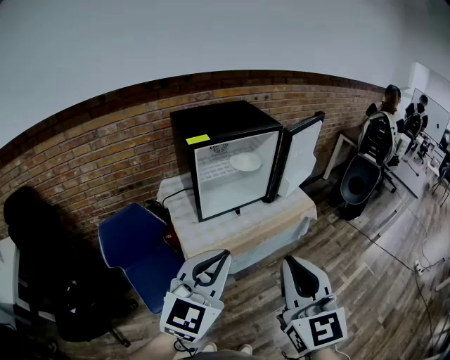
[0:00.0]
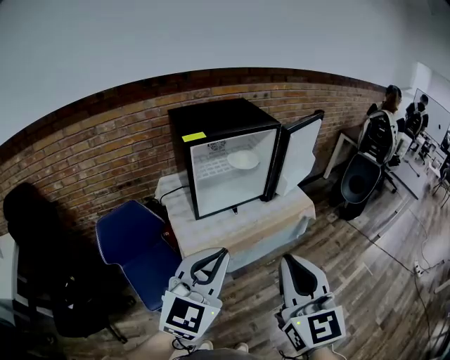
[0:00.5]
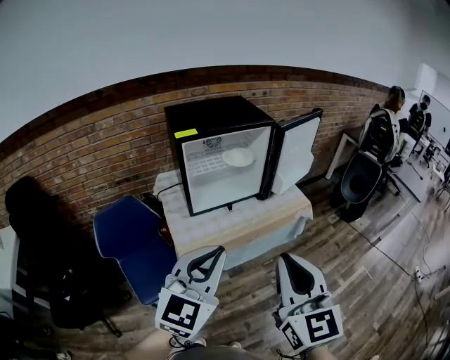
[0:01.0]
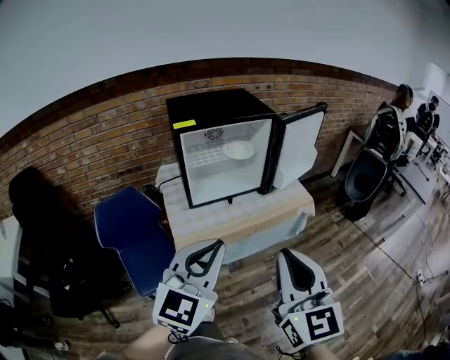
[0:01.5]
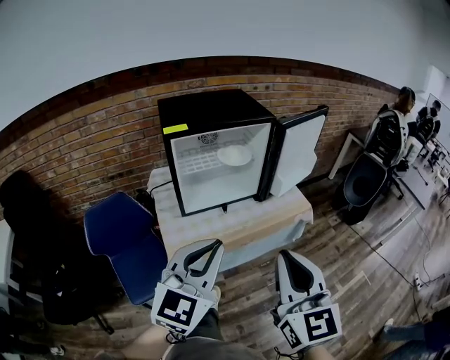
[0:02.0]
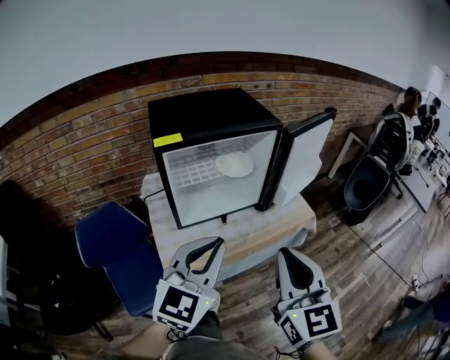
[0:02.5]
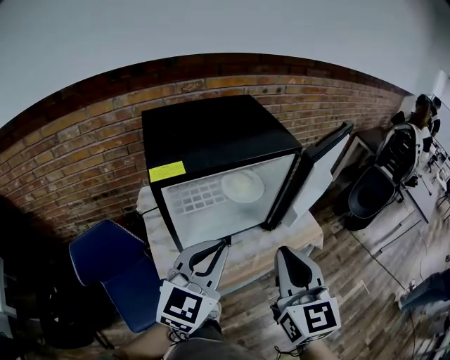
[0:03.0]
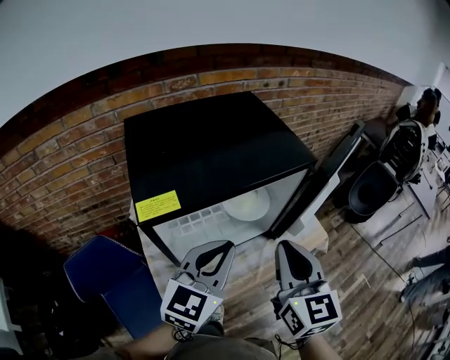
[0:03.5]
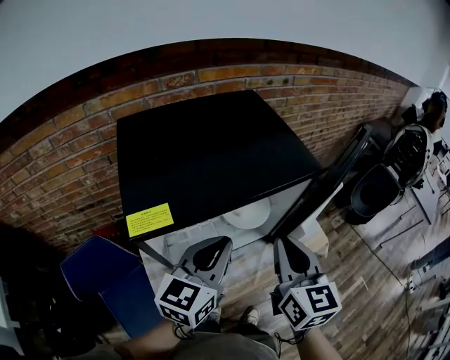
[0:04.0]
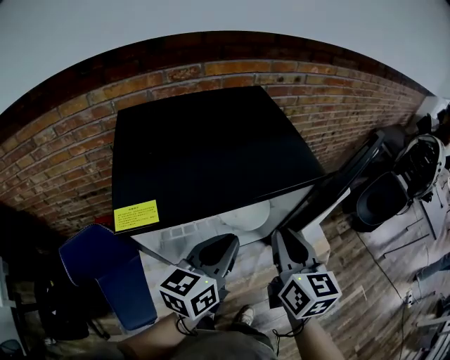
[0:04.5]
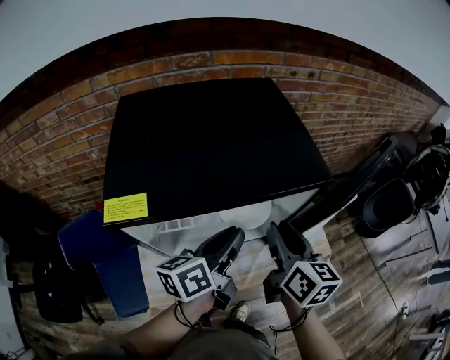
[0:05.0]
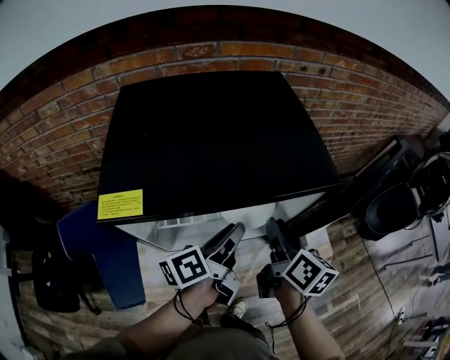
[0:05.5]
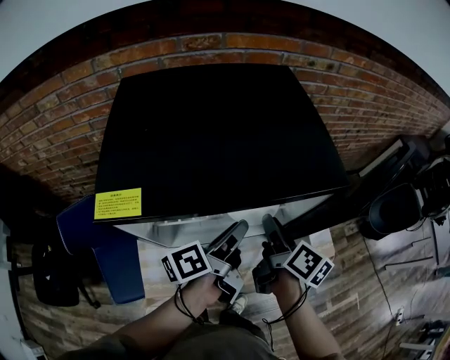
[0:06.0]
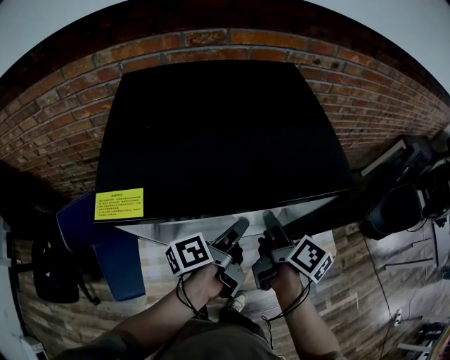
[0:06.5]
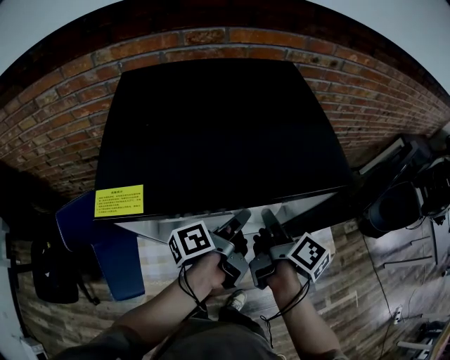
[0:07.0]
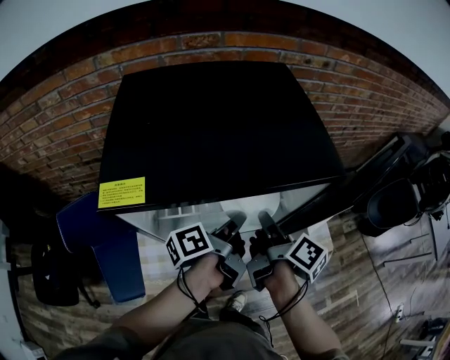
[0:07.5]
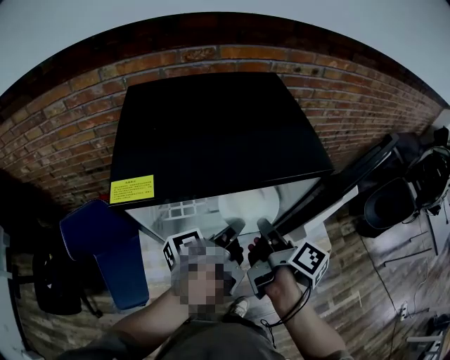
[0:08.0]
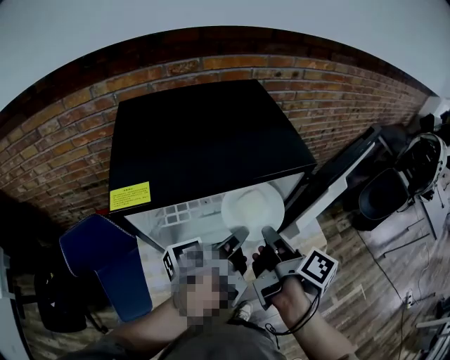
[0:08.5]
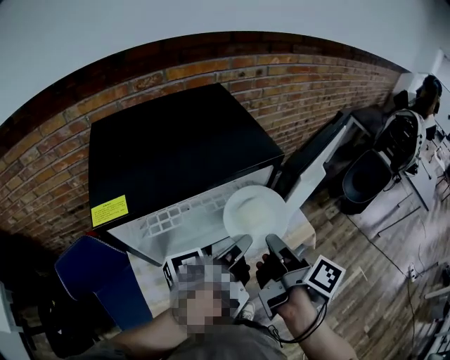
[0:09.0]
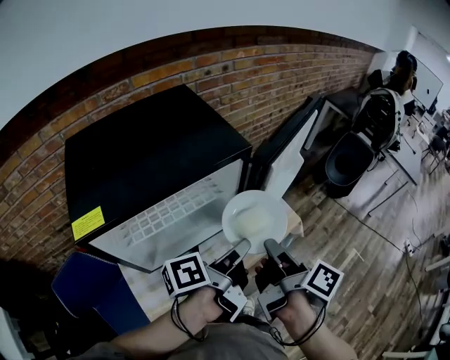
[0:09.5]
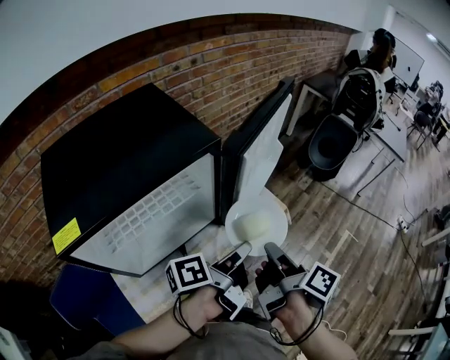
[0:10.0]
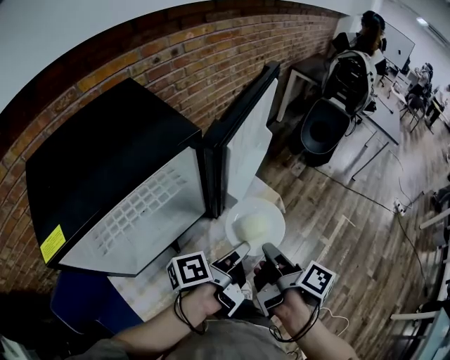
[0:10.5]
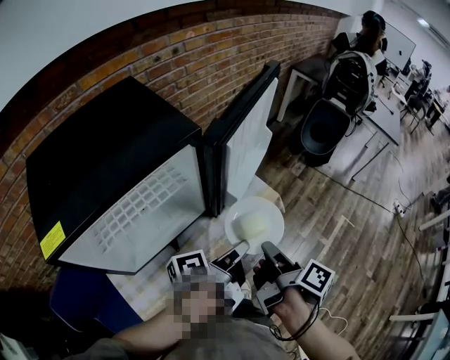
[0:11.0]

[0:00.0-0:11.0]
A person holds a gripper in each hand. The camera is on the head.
0:00.0 to 0:02.0: The two grippers go approximately 10 cm to the right and forward.
0:02.0 to 0:03.5: Both grippers travel together forward, approximately 30 cm.
0:03.5 to 0:05.5: Both grippers move forward and downward, roughly 15 cm. The right gripper swivels approximately 40 degrees, and opens up. Meanwhile the left gripper rotates around the line of its fingers by some 70 degrees, counterclockwise from behind, and opens up.
0:05.5 to 0:07.5: The left gripper closes its fingers, while the right gripper turns by roughly 30 degrees, and closes its fingers.
0:07.5 to 0:09.0: The right gripper travels backward, to the right and upward by about 15 cm, while the left gripper travels upward, to the right and backward by approximately 15 cm.
0:09.0 to 0:11.0: Both grippers move to the right and downward, about 15 cm. The right gripper rotates roughly 20 degrees. The left gripper turns by about 20 degrees.

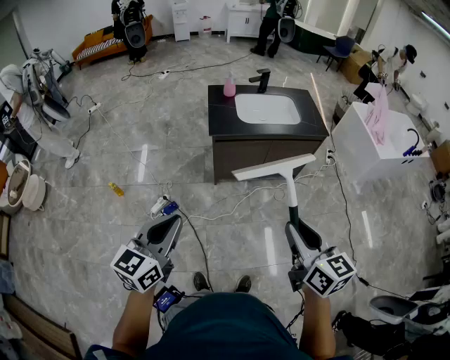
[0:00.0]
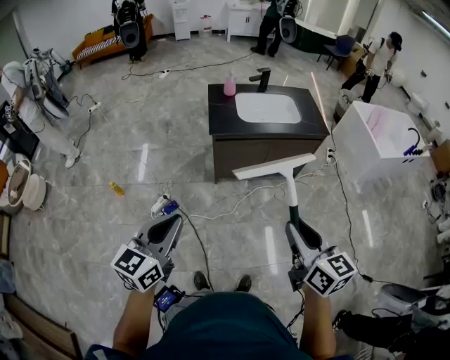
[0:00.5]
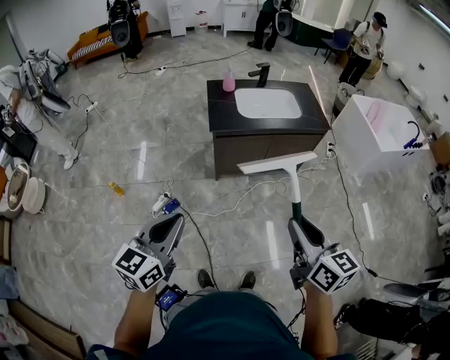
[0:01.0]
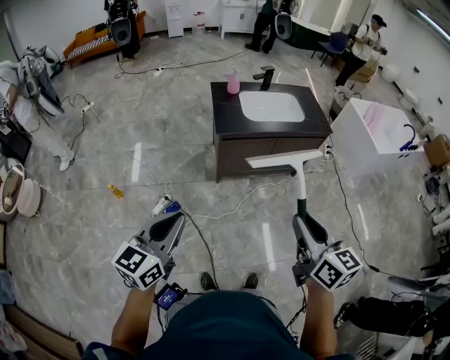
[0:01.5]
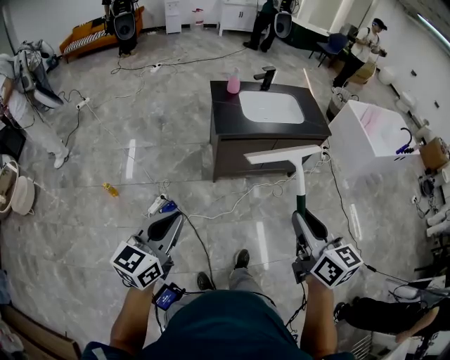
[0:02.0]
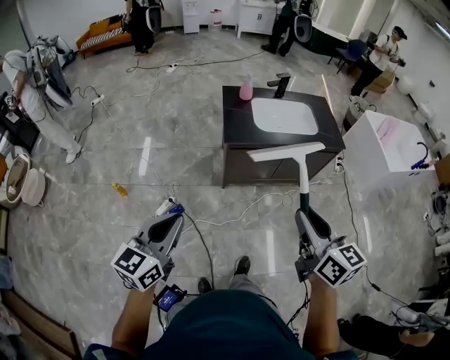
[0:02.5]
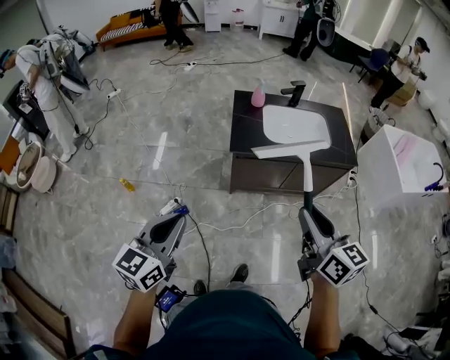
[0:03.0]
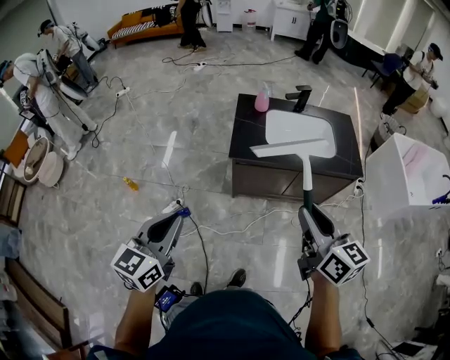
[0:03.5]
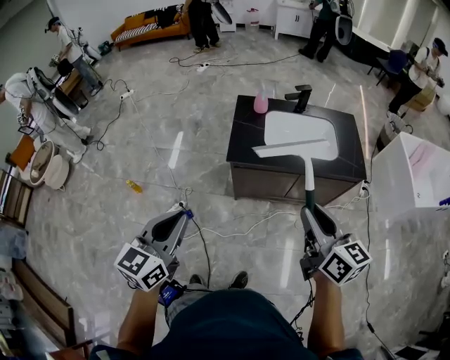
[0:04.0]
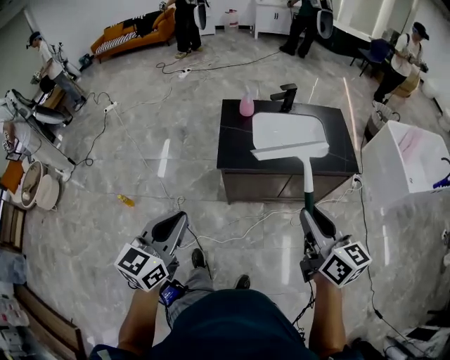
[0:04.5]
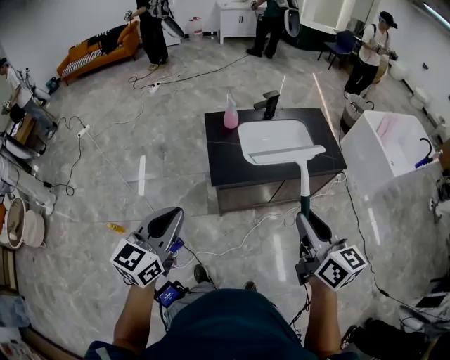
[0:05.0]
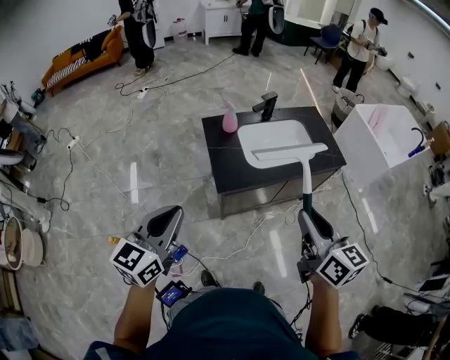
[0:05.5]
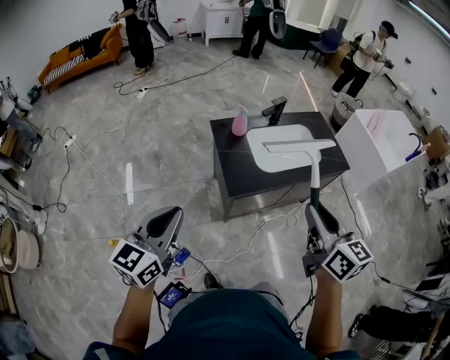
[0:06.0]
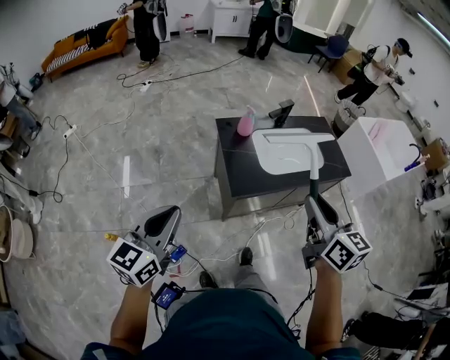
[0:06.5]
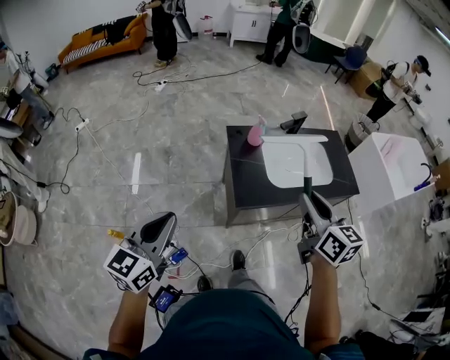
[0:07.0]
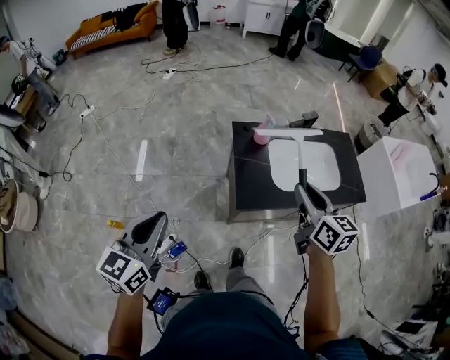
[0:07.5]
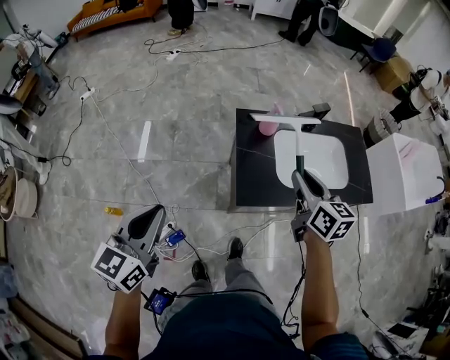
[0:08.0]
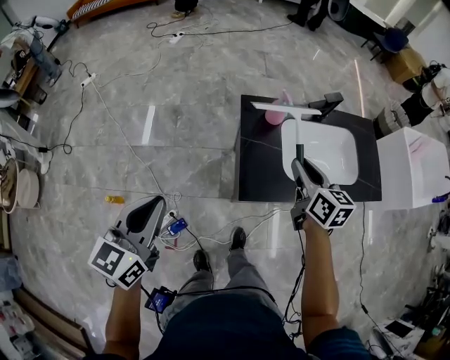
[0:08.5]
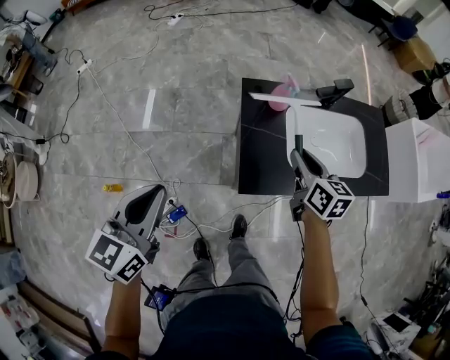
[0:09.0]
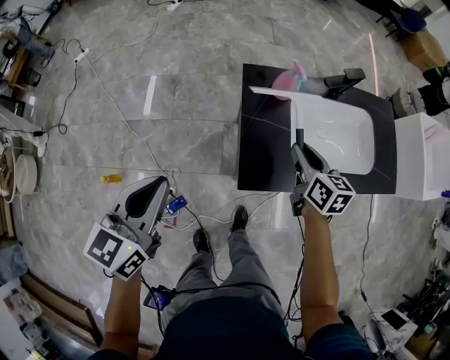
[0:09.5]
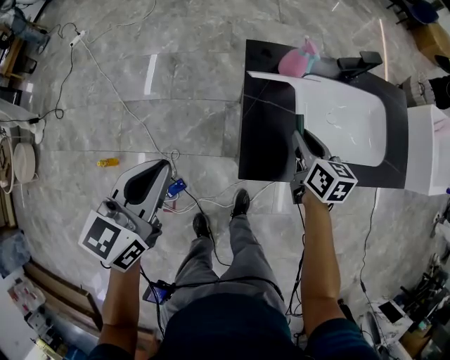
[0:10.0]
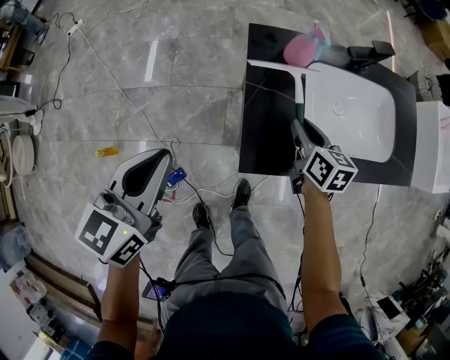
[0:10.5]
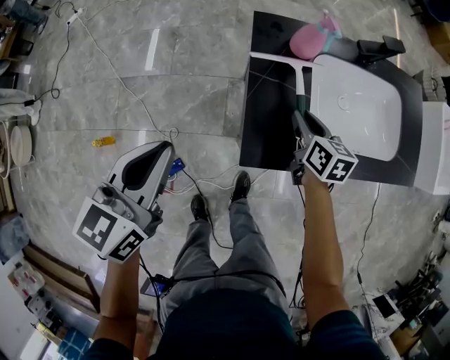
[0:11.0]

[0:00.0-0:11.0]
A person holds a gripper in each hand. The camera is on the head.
0:00.0 to 0:02.0: The grippers both shift to the left by about 10 cm.
0:02.0 to 0:03.5: The left gripper shifts some 15 cm forward and to the right, while the right gripper shifts some 25 cm forward and to the right.
0:03.5 to 0:05.5: The right gripper shifts approximately 10 cm forward and to the left, and changes its angle by roughly 20 degrees. Meanwhile the left gripper goes some 20 cm forward, and swivels about 20 degrees.
0:05.5 to 0:07.5: The left gripper goes about 10 cm to the left; the right gripper heads forward and to the left, covering approximately 20 cm.
0:07.5 to 0:09.0: The left gripper goes roughly 10 cm forward and downward; the right gripper moves downward and forward, approximately 20 cm.
0:09.0 to 0:11.0: The left gripper shifts about 10 cm downward and forward; the right gripper moves downward, approximately 20 cm.

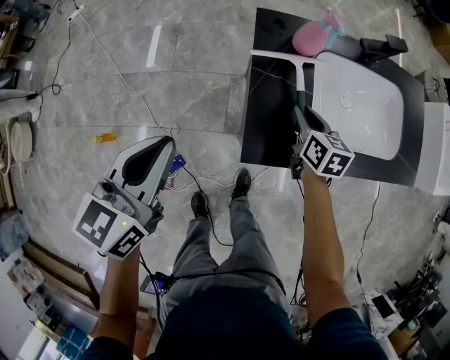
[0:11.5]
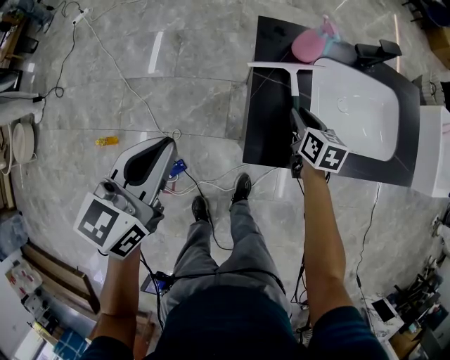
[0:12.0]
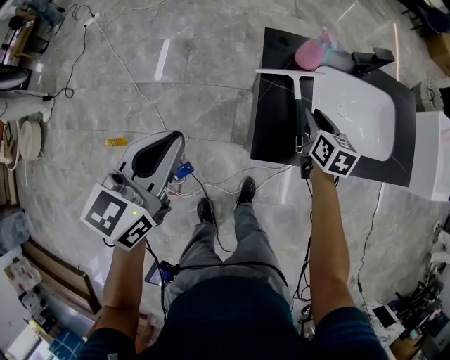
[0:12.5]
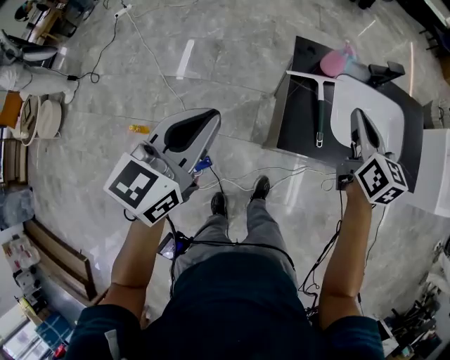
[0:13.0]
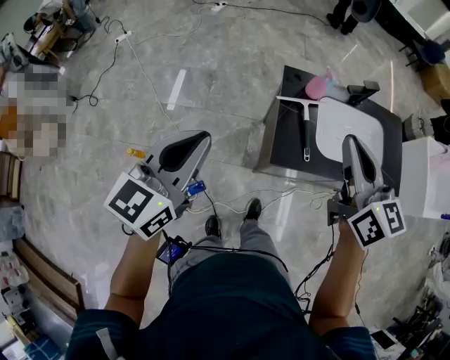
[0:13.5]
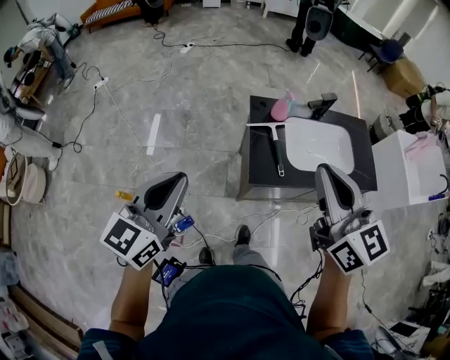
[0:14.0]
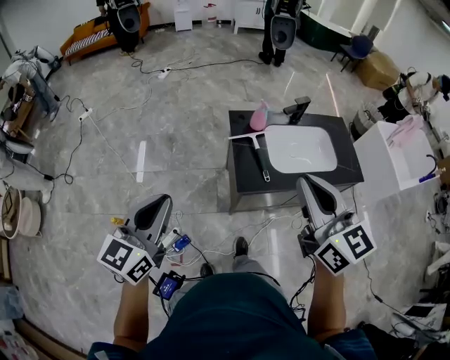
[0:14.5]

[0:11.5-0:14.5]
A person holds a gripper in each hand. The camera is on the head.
0:11.5 to 0:13.0: The left gripper heads upward, covering roughly 15 cm; the right gripper shifts approximately 25 cm upward, swivels roughly 20 degrees, and closes its fingers.
0:13.0 to 0:14.5: The left gripper moves backward and upward, roughly 15 cm. The right gripper is displaced backward and upward by about 30 cm, and changes its angle by about 20 degrees.
